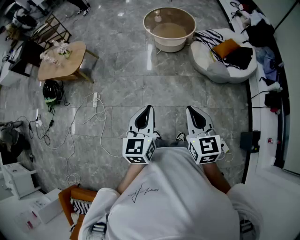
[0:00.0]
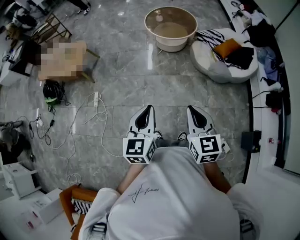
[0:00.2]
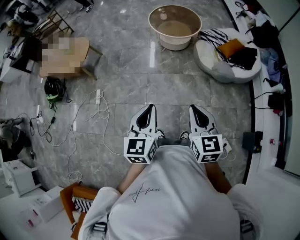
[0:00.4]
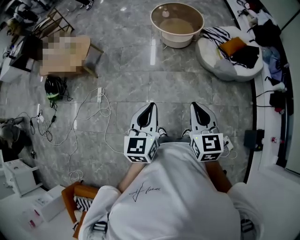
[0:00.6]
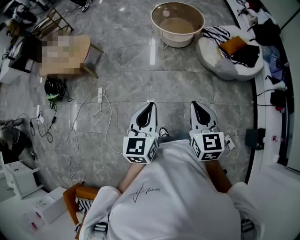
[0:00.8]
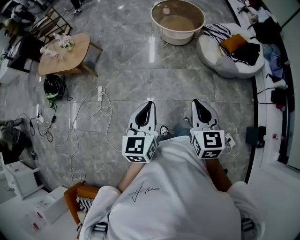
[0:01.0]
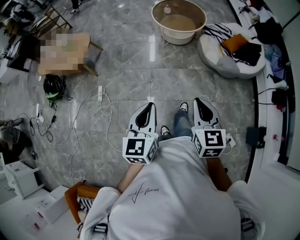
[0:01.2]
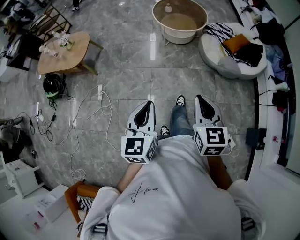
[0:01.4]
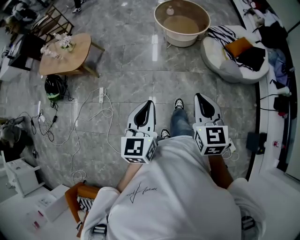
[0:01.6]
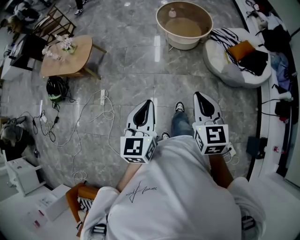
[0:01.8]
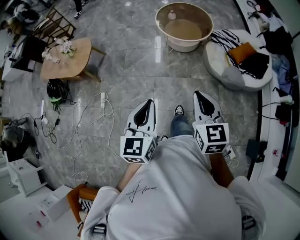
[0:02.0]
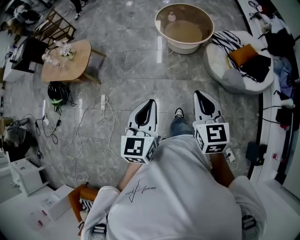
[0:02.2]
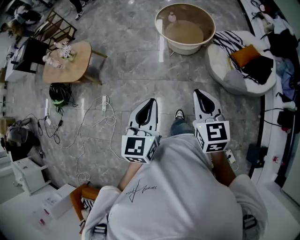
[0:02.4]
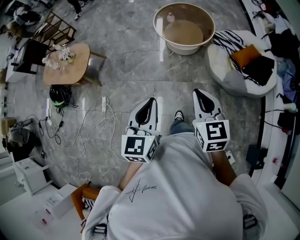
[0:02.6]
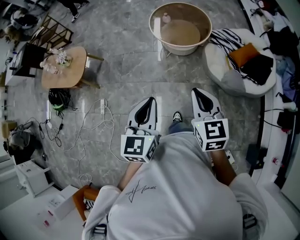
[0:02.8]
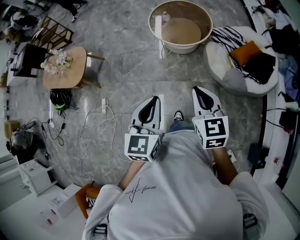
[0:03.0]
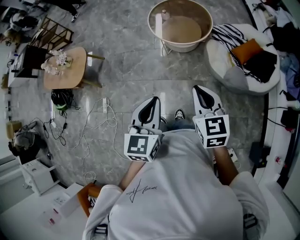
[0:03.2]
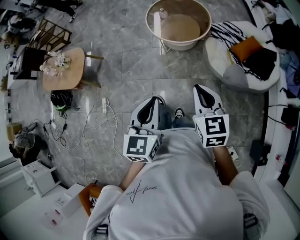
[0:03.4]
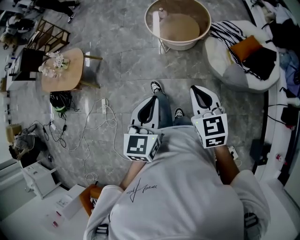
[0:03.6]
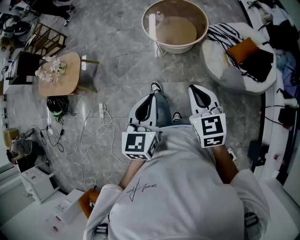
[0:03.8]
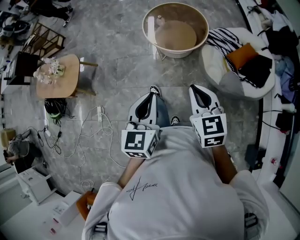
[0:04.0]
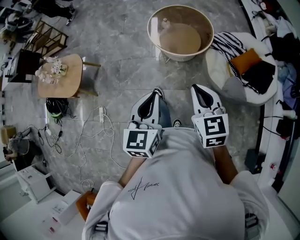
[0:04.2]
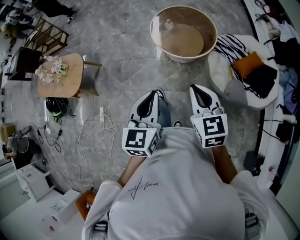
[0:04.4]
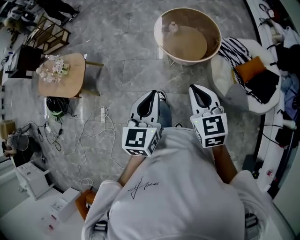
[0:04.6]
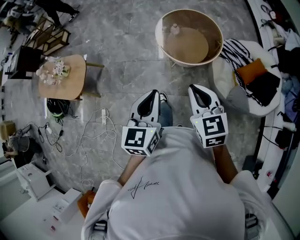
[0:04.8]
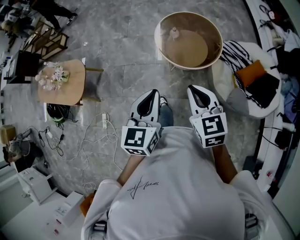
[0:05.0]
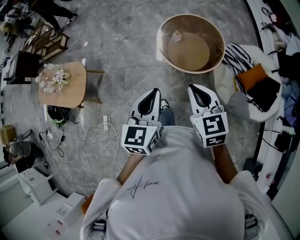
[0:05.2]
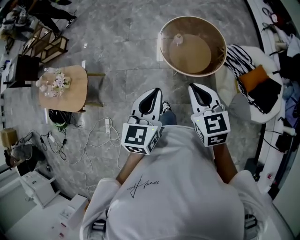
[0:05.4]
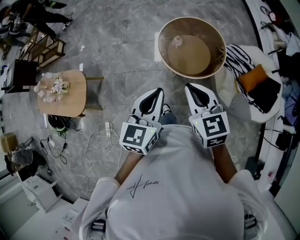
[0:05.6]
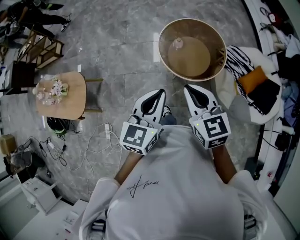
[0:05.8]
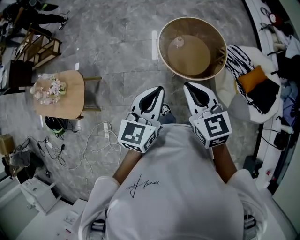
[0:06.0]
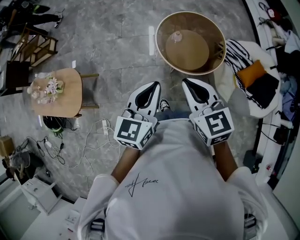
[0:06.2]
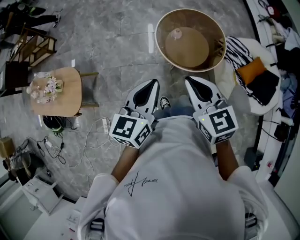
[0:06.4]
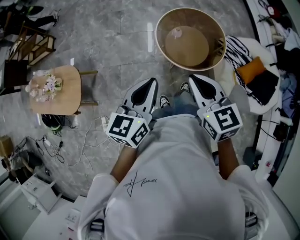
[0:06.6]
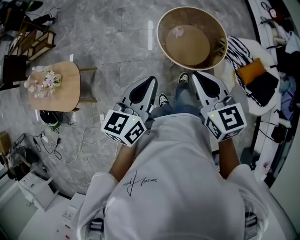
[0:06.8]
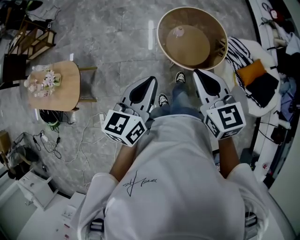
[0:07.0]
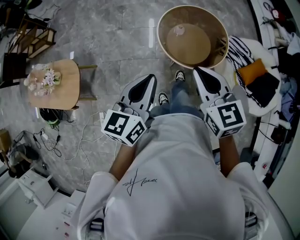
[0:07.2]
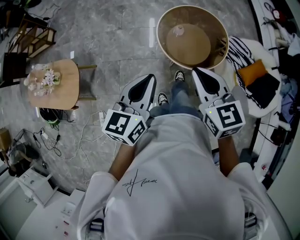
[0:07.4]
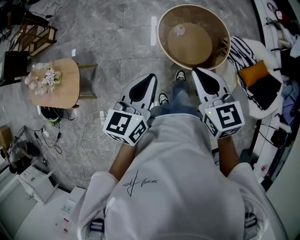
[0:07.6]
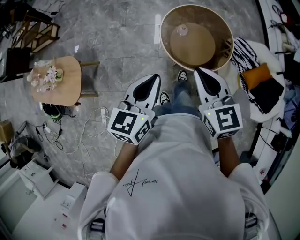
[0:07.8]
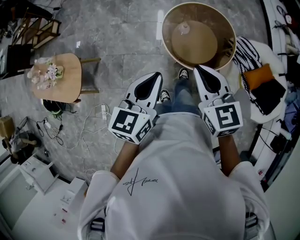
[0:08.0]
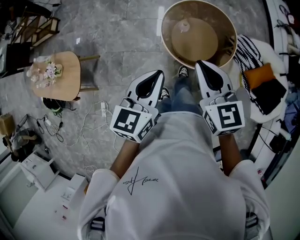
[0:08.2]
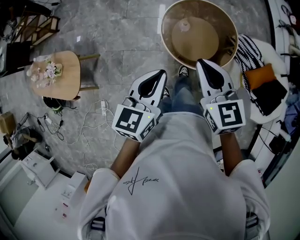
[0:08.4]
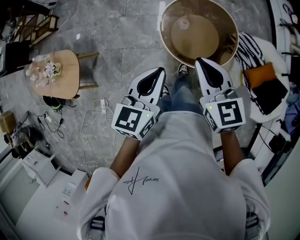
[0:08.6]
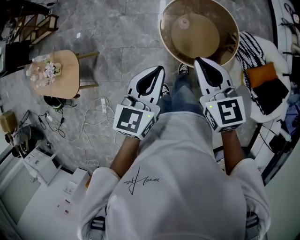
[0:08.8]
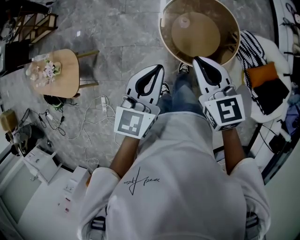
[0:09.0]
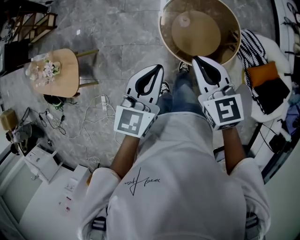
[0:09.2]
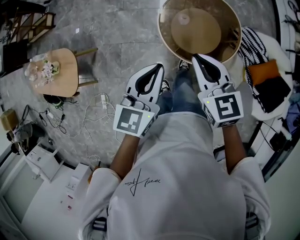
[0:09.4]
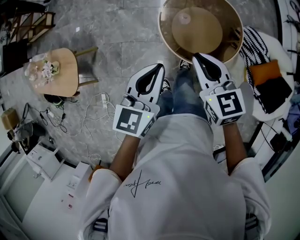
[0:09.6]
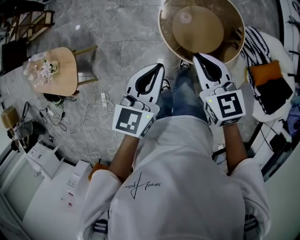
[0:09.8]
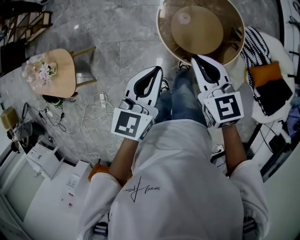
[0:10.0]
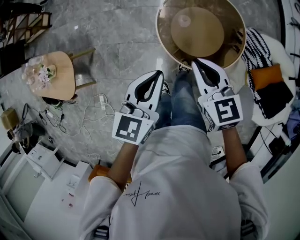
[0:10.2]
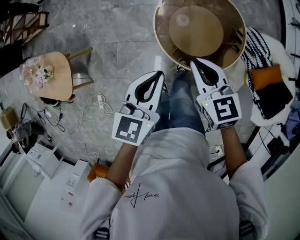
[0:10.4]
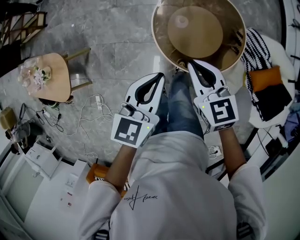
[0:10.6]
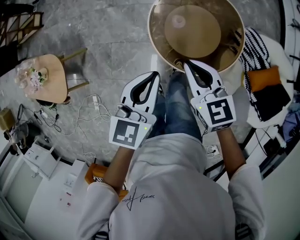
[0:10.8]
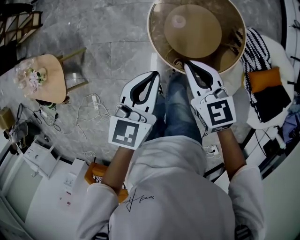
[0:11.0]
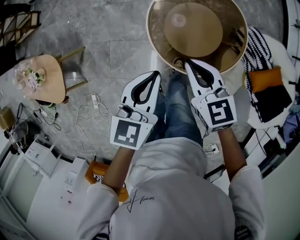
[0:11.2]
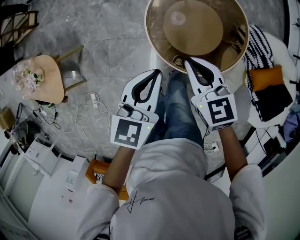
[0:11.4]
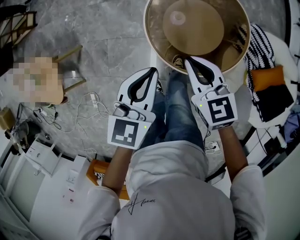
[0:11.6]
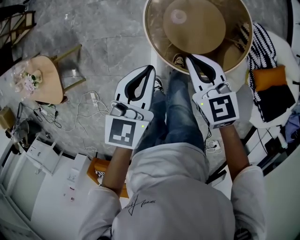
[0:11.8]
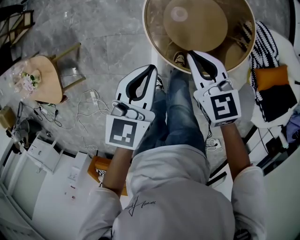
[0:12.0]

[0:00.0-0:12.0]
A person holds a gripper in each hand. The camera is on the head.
0:00.0 to 0:01.6: The right gripper goes approximately 10 cm forward and to the left, while the left gripper travels to the left and forward by about 10 cm.
0:01.6 to 0:03.0: The grippers both shift forward and to the right by some 25 cm.
0:03.0 to 0:04.4: Both grippers move forward, some 15 cm.
0:04.4 to 0:06.0: The right gripper is displaced forward and to the left by about 25 cm; the left gripper is displaced forward by approximately 25 cm.
0:06.0 to 0:07.6: There are only small adjustments of the grippers.
0:07.6 to 0:09.0: The right gripper goes approximately 10 cm forward. Meanwhile the left gripper shifts about 10 cm forward and to the right.
0:09.0 to 0:10.4: The grippers both shift downward and forward by roughly 10 cm.
0:10.4 to 0:12.0: Both grippers travel together downward and forward, some 15 cm.

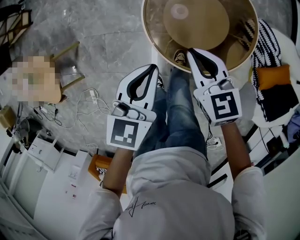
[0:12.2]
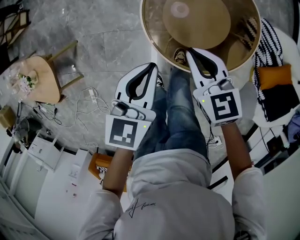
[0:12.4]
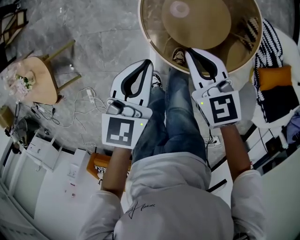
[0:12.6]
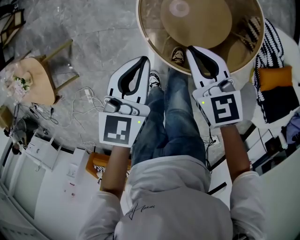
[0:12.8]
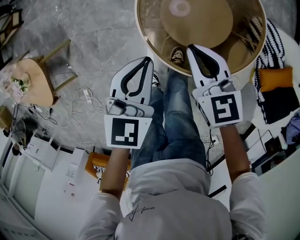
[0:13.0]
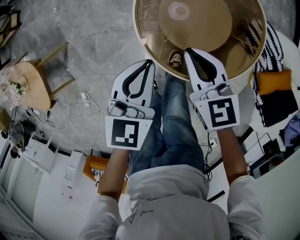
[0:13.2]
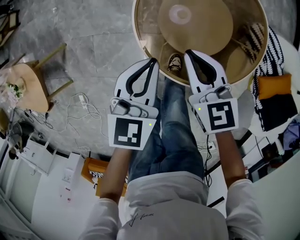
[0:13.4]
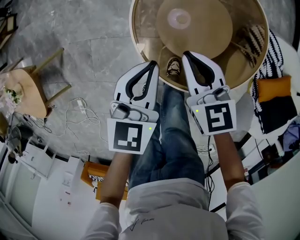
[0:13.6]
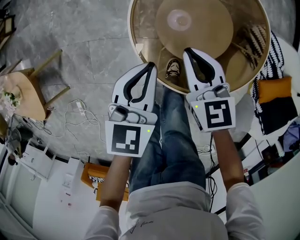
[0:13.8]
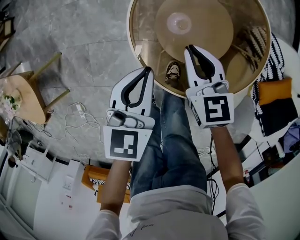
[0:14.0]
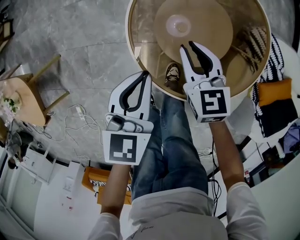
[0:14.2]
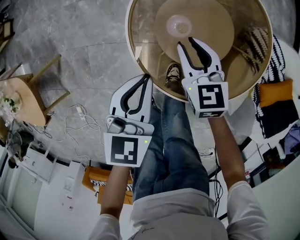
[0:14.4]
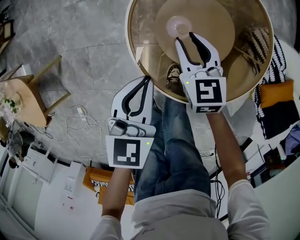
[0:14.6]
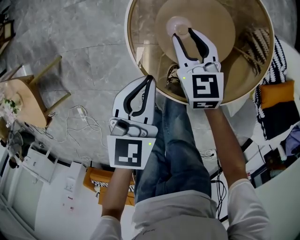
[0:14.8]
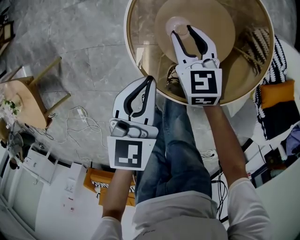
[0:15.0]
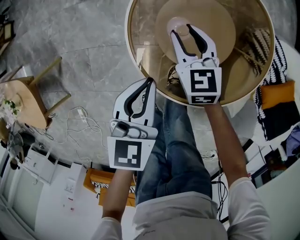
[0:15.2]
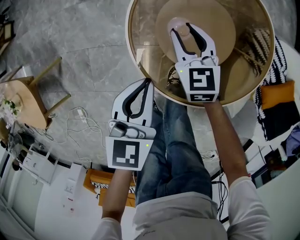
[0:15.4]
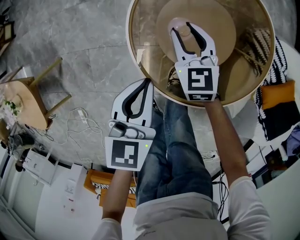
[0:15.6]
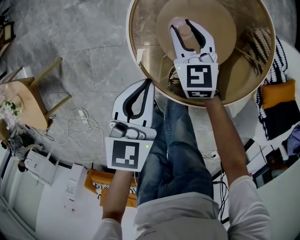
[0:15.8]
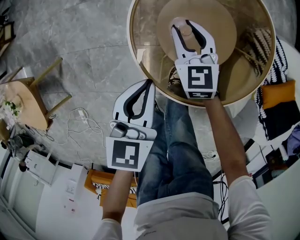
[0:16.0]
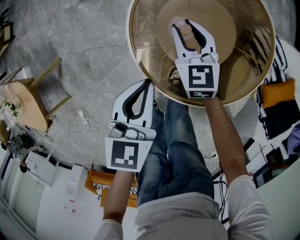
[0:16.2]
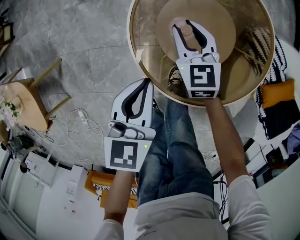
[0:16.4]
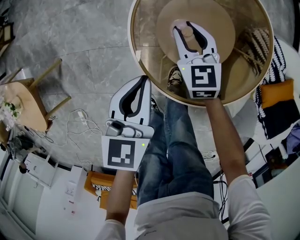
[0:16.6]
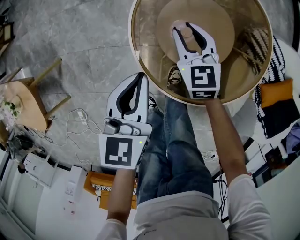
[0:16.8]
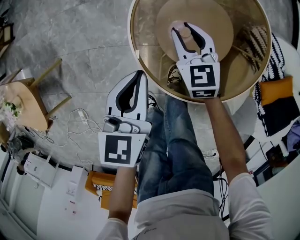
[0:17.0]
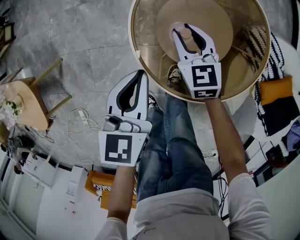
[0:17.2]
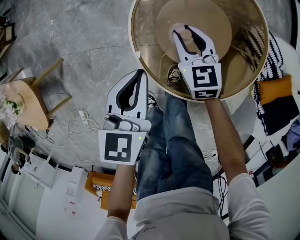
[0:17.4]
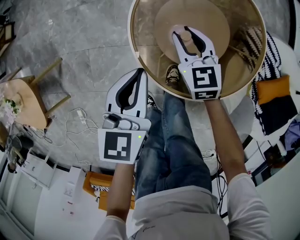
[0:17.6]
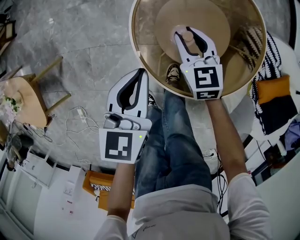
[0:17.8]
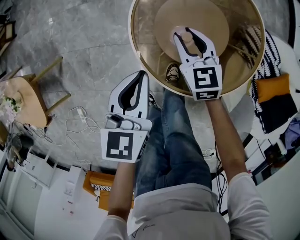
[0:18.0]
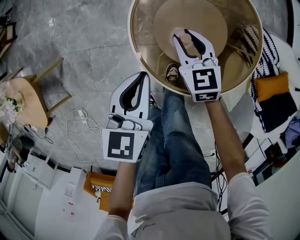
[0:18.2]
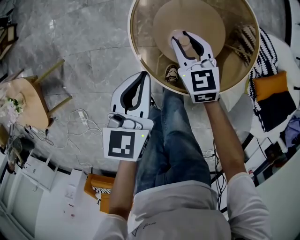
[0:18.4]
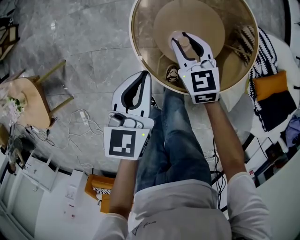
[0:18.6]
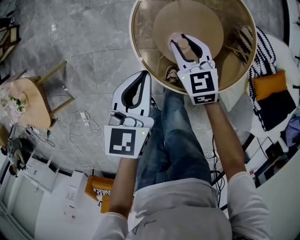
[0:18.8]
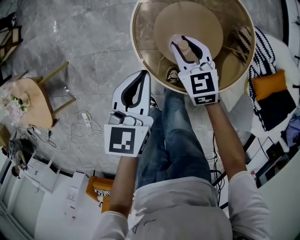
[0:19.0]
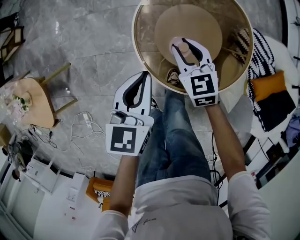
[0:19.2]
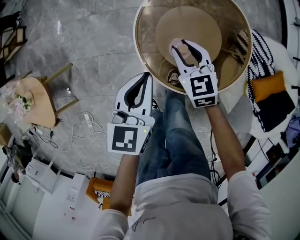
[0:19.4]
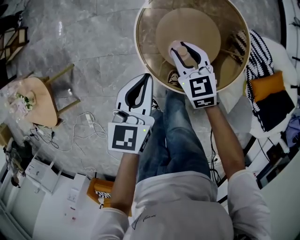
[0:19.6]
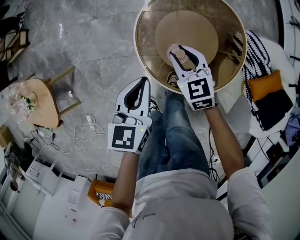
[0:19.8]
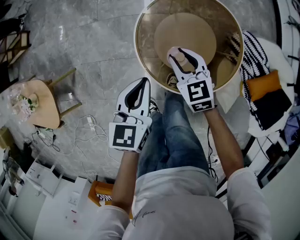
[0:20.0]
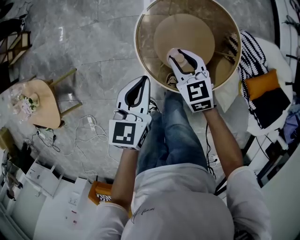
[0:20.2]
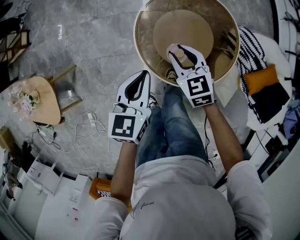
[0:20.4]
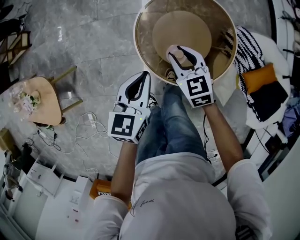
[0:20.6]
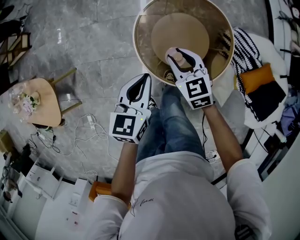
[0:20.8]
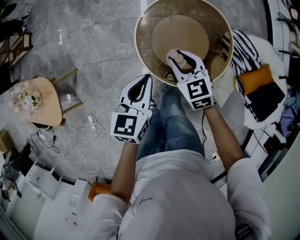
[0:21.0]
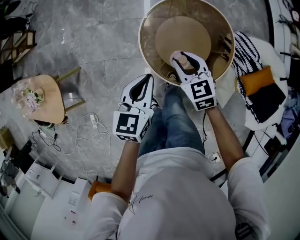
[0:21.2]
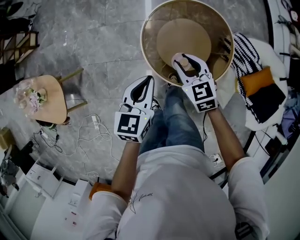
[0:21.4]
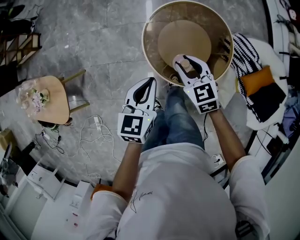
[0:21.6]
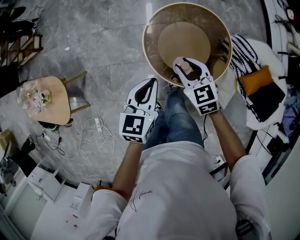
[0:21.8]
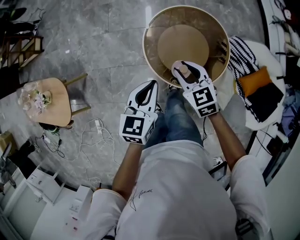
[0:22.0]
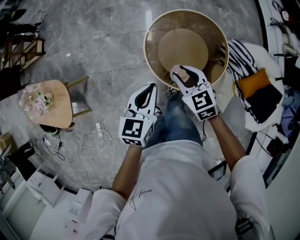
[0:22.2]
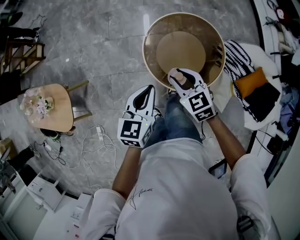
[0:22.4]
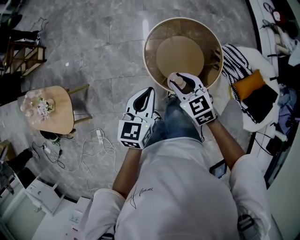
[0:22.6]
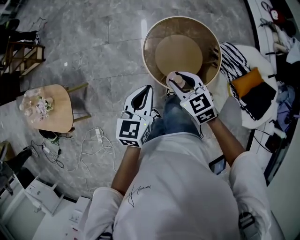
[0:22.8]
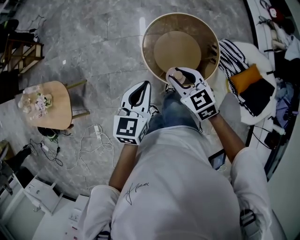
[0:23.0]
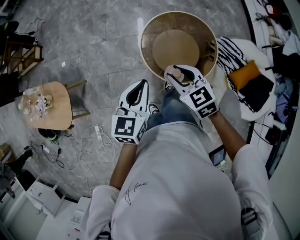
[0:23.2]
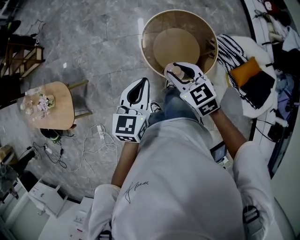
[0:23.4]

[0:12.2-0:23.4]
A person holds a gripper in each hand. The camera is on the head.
0:12.2 to 0:13.8: Both grippers travel together downward, some 15 cm.
0:13.8 to 0:15.4: The right gripper is displaced downward and forward by some 10 cm, and opens its fingers.
0:15.4 to 0:17.0: The grippers stay close to where they were, moving slightly.
0:17.0 to 0:18.6: Both grippers move upward, roughly 5 cm.
0:18.6 to 0:20.2: Both grippers travel together upward, approximately 10 cm.
0:20.2 to 0:21.8: The grippers both shift upward and backward by some 10 cm.
0:21.8 to 0:23.4: Both grippers travel together upward and backward, approximately 15 cm.

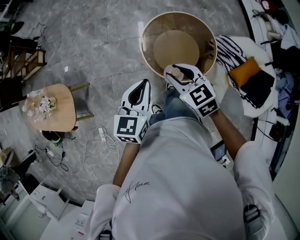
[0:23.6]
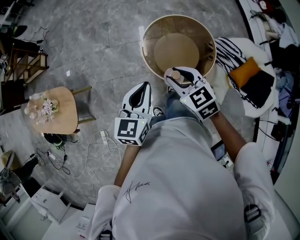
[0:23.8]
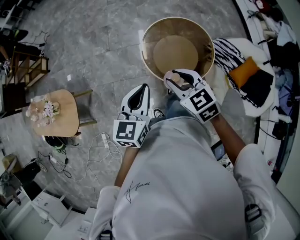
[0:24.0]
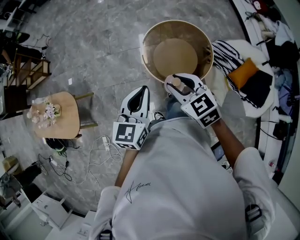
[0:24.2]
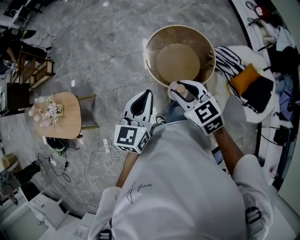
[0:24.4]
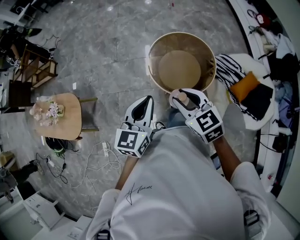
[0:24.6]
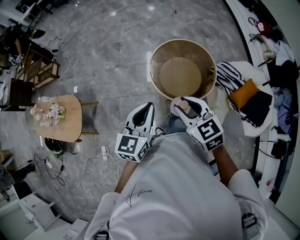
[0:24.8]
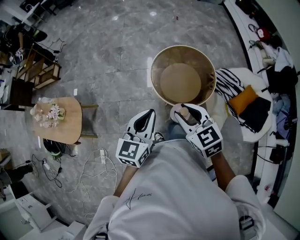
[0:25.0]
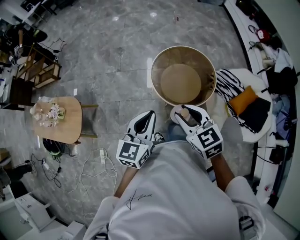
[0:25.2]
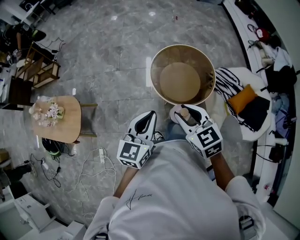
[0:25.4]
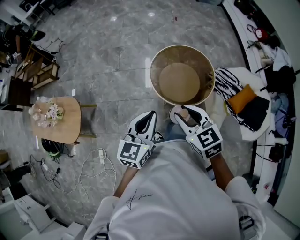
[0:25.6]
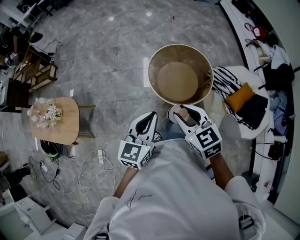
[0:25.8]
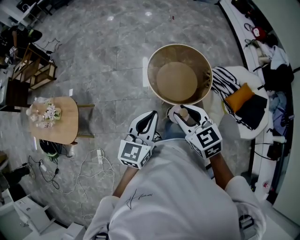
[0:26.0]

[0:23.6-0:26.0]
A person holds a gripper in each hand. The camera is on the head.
0:23.6 to 0:24.8: Both grippers travel together backward and upward, roughly 10 cm.
0:24.8 to 0:26.0: There are only small adjustments of the grippers.
